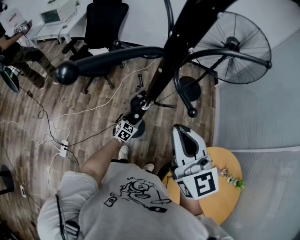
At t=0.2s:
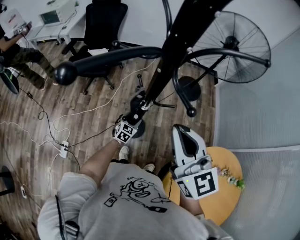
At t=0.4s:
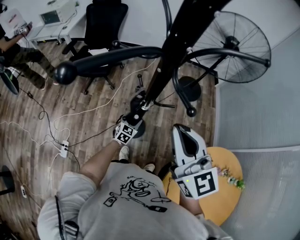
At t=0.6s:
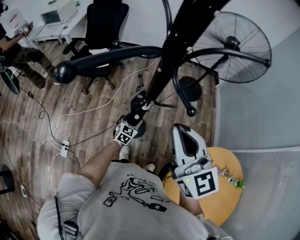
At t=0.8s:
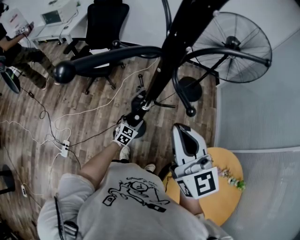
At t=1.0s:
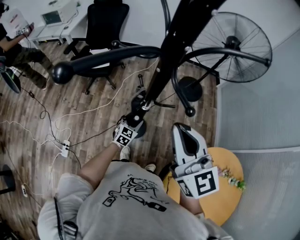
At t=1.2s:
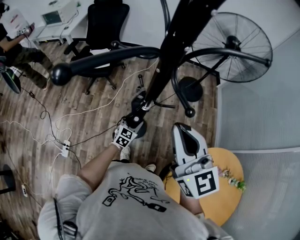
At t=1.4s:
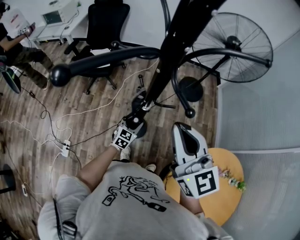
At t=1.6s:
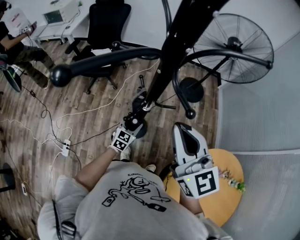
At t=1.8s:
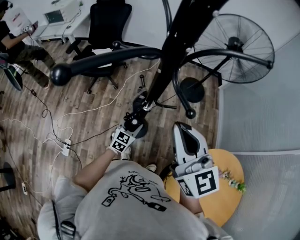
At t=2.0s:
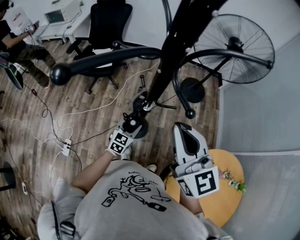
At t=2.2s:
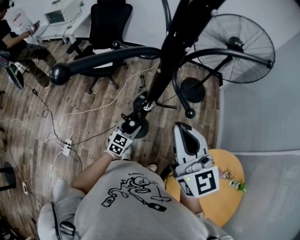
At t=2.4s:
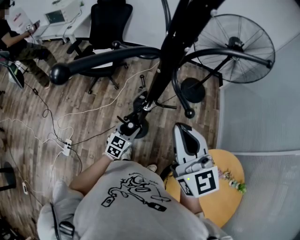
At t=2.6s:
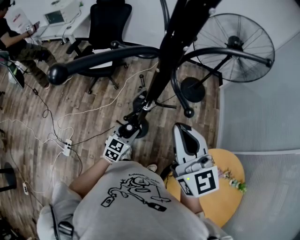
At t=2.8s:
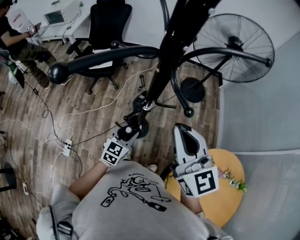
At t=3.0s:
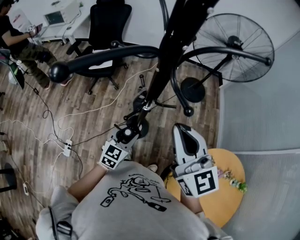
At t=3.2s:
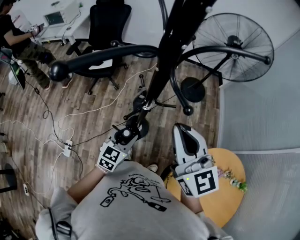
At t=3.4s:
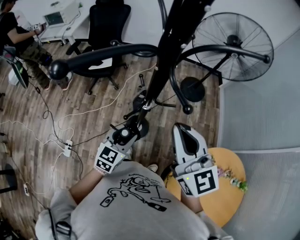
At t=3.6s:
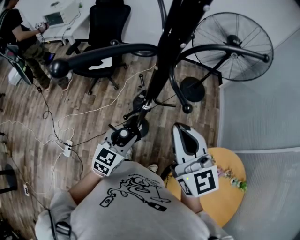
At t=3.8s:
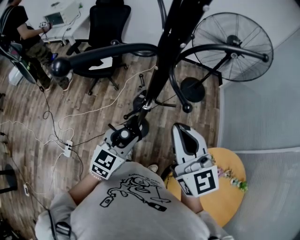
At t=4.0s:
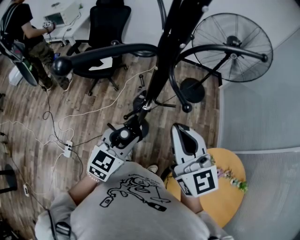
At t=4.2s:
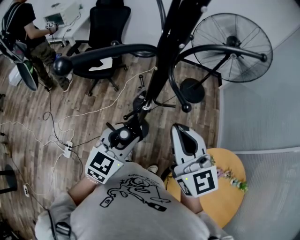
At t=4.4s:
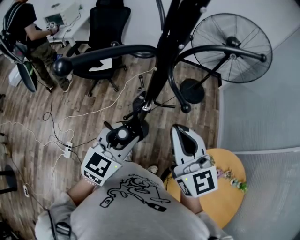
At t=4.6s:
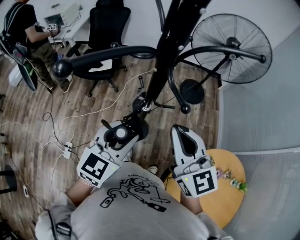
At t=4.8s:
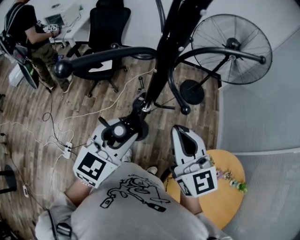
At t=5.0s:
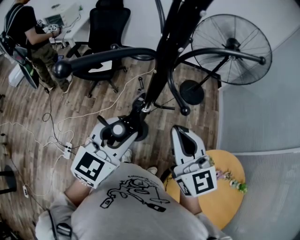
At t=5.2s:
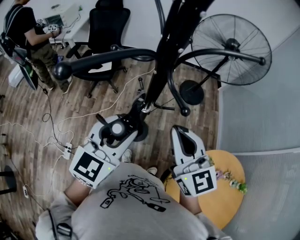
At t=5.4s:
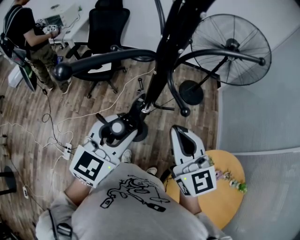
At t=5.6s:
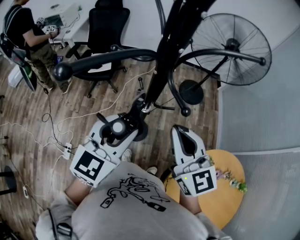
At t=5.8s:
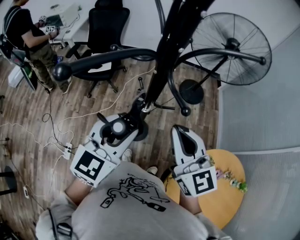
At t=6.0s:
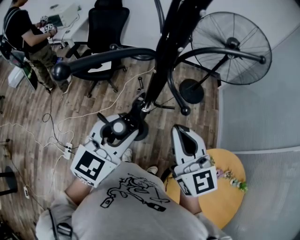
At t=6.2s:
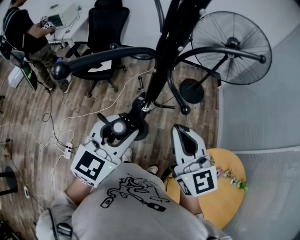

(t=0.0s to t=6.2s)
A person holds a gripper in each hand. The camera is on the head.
t=0.0s - t=1.6s: The left gripper heads upward, covering approximately 10 cm.
t=1.6s - t=3.2s: The left gripper moves upward and backward, some 15 cm.
t=3.2s - t=4.6s: The left gripper moves upward, approximately 20 cm.
t=4.6s - t=6.2s: The grippers make only small movements.

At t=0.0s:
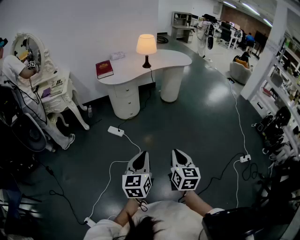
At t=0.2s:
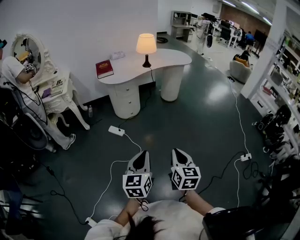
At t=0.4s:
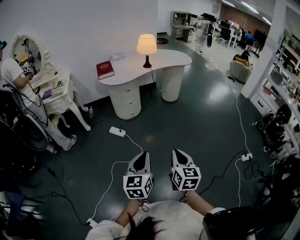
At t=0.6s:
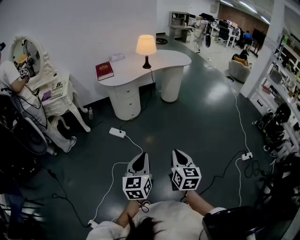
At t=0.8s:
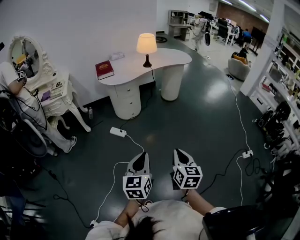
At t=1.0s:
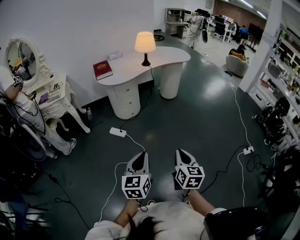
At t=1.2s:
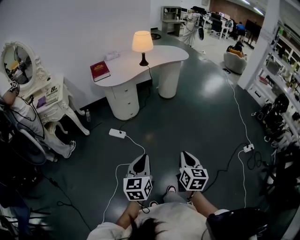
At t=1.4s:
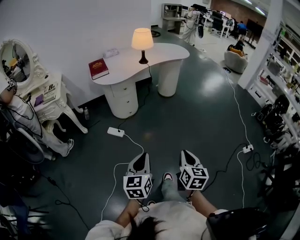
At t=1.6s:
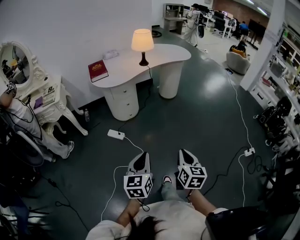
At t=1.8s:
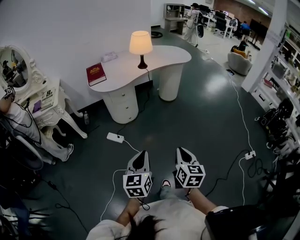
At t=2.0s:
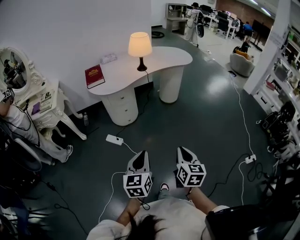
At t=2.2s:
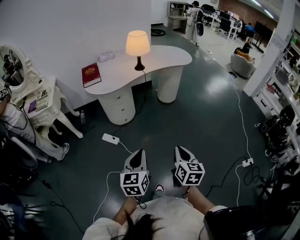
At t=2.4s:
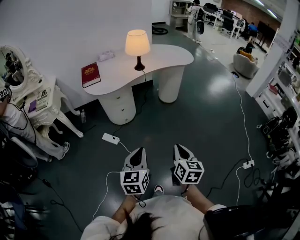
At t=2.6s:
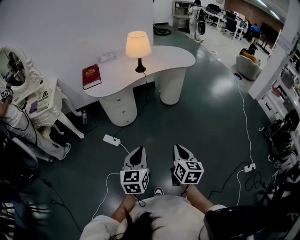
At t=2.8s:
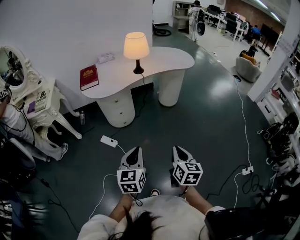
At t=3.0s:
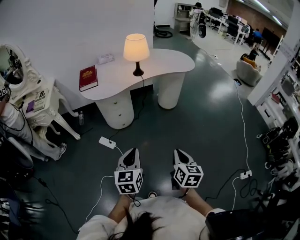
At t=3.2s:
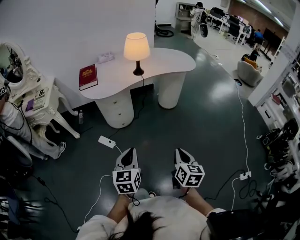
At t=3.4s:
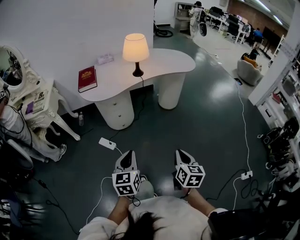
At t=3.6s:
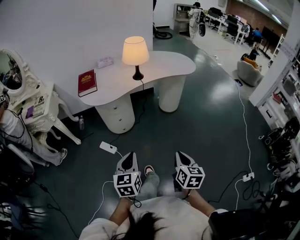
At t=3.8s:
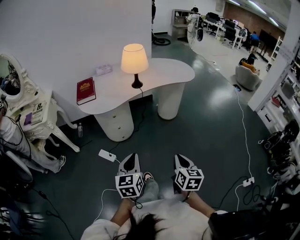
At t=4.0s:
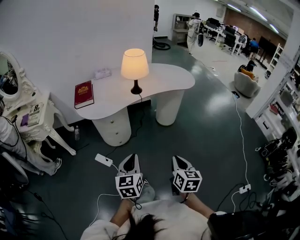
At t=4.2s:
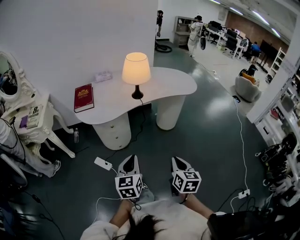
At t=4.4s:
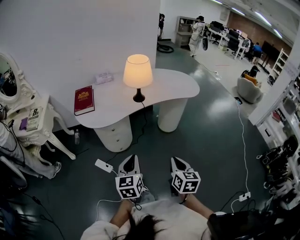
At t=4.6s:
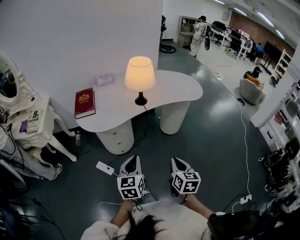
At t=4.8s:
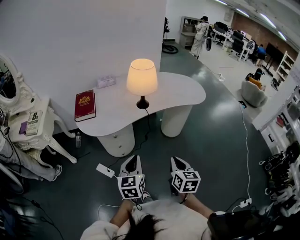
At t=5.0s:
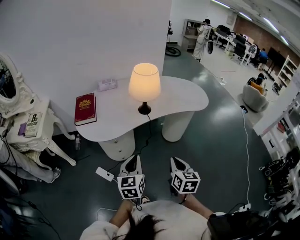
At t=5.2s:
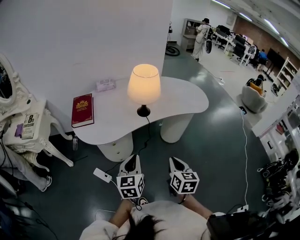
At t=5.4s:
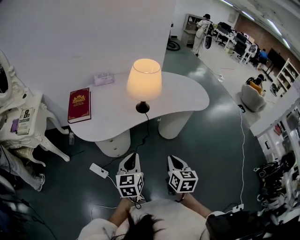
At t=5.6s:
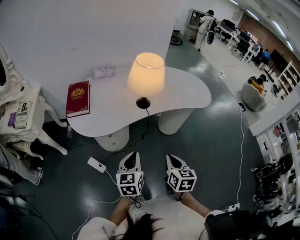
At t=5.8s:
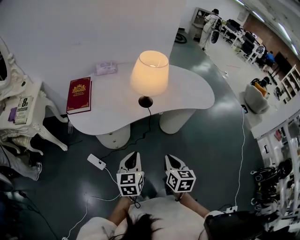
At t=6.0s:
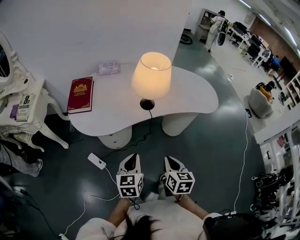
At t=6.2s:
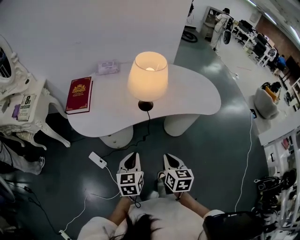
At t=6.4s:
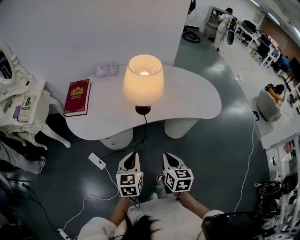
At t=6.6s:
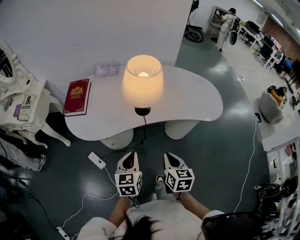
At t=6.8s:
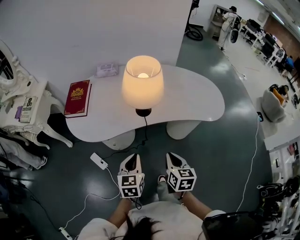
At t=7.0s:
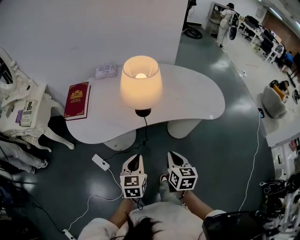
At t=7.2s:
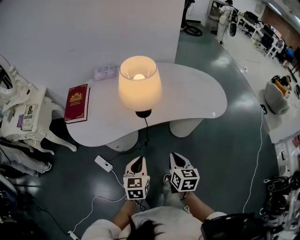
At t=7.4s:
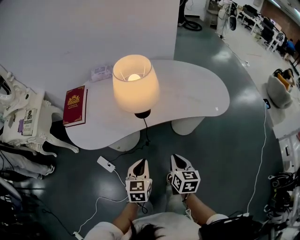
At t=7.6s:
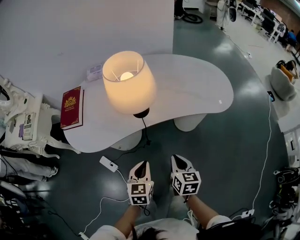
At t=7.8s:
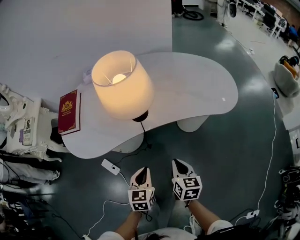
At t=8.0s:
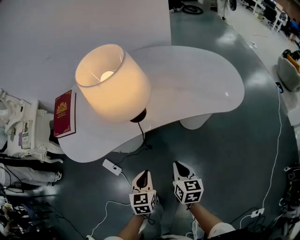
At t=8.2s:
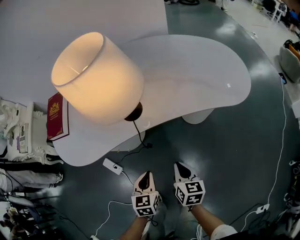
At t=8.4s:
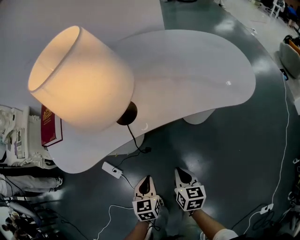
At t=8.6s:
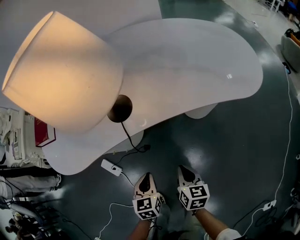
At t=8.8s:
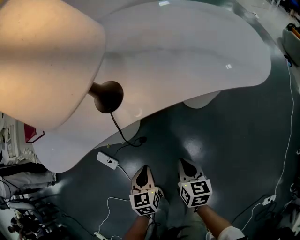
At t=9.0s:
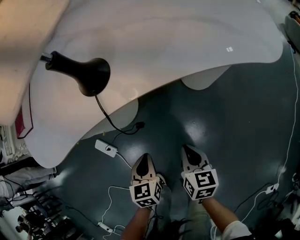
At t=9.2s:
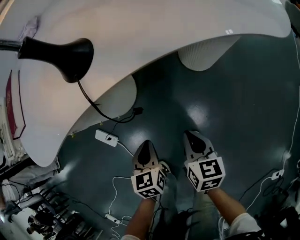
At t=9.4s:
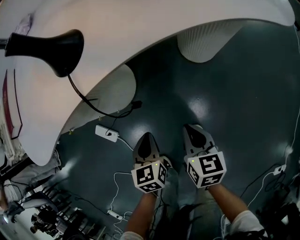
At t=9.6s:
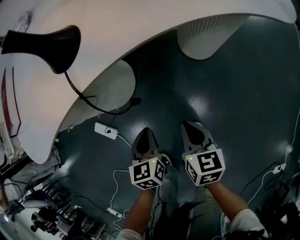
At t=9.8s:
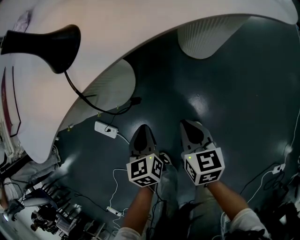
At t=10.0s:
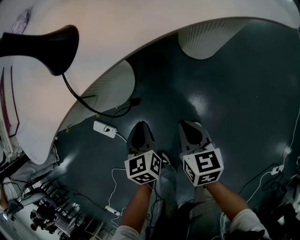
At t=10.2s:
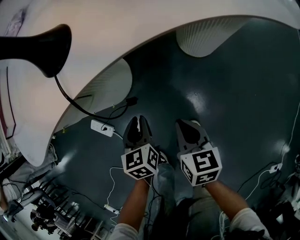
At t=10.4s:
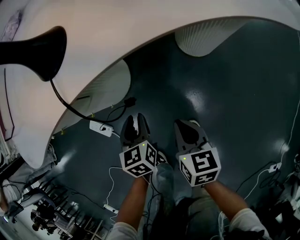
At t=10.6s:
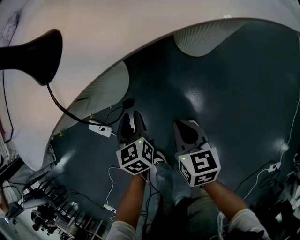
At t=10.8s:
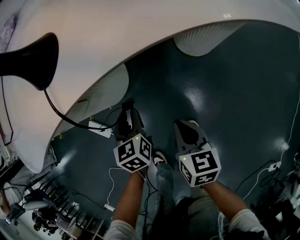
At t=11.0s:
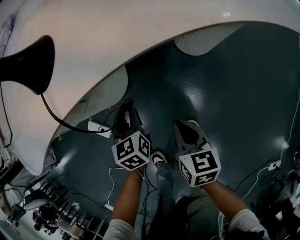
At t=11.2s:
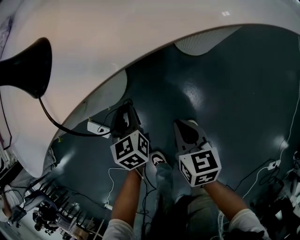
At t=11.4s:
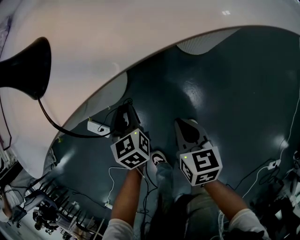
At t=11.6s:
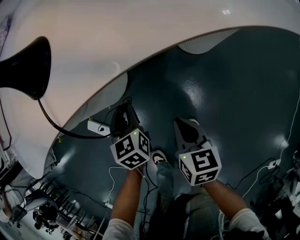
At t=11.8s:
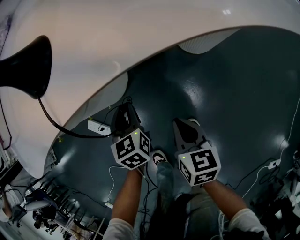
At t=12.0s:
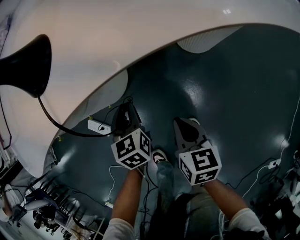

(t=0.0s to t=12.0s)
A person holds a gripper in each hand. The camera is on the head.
t=0.0s - t=1.6s: The grippers both shift forward by some 10 cm.
t=1.6s - t=3.0s: The right gripper travels forward and to the right by some 25 cm, while the left gripper travels forward by roughly 20 cm.
t=3.0s - t=4.4s: The grippers both shift forward by some 20 cm.
t=4.4s - t=6.0s: The two grippers go approximately 20 cm forward.
t=6.0s - t=7.6s: The right gripper goes about 15 cm forward, to the right and downward, while the left gripper moves to the right, forward and downward, roughly 15 cm.
t=7.6s - t=9.0s: Both grippers move downward, roughly 30 cm.
t=9.0s - t=10.4s: The left gripper is displaced forward and downward by some 10 cm, and opens up.
t=10.4s - t=12.0s: The left gripper heads forward, covering approximately 5 cm.

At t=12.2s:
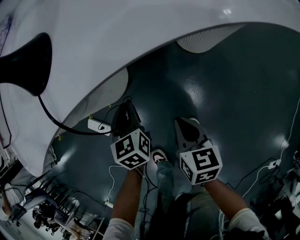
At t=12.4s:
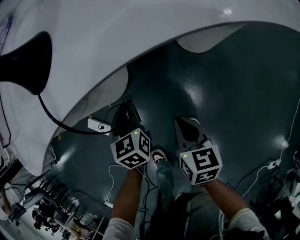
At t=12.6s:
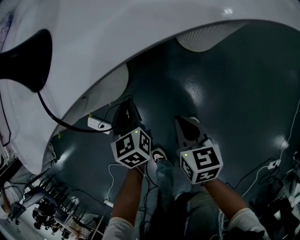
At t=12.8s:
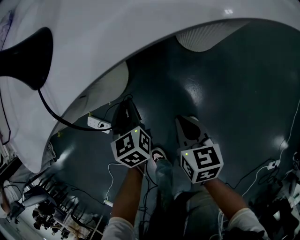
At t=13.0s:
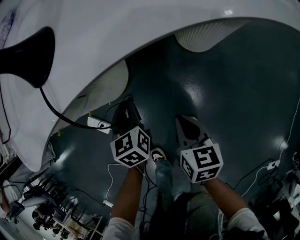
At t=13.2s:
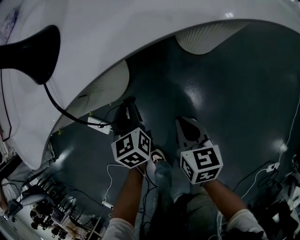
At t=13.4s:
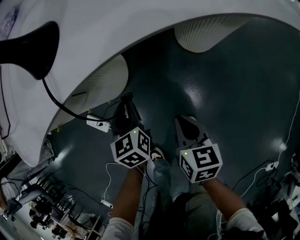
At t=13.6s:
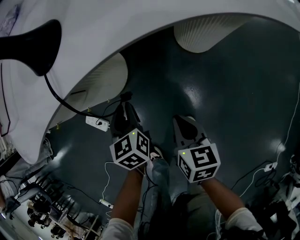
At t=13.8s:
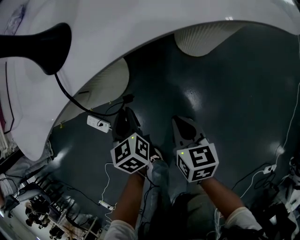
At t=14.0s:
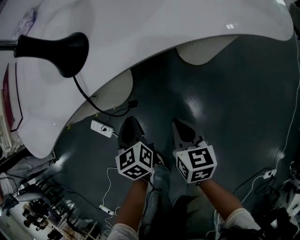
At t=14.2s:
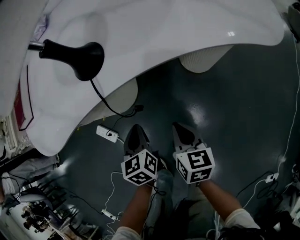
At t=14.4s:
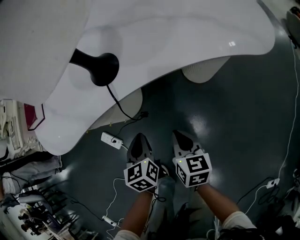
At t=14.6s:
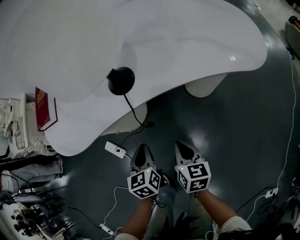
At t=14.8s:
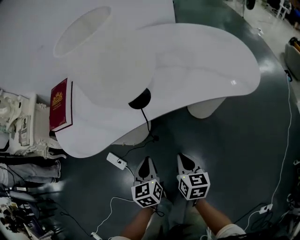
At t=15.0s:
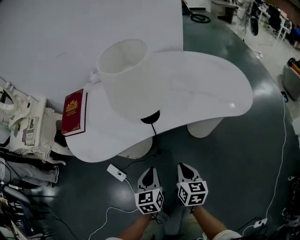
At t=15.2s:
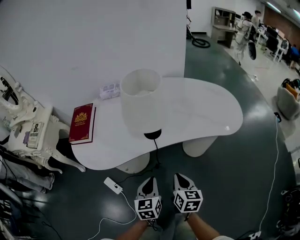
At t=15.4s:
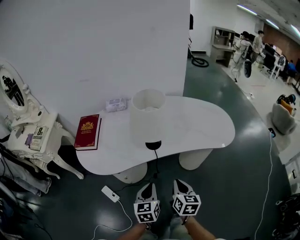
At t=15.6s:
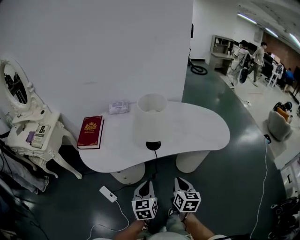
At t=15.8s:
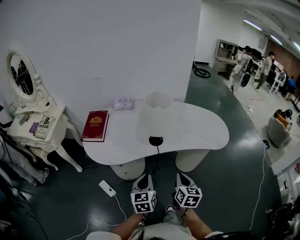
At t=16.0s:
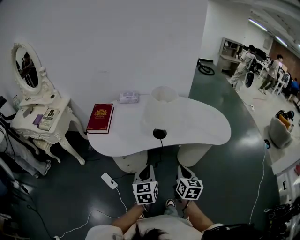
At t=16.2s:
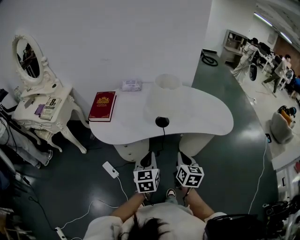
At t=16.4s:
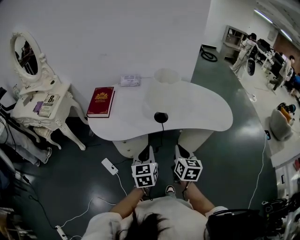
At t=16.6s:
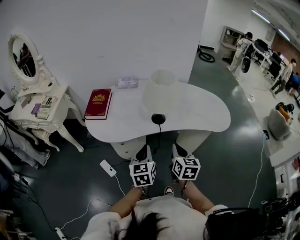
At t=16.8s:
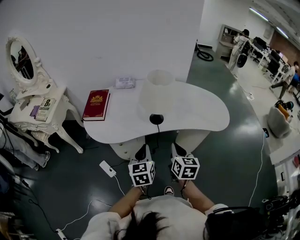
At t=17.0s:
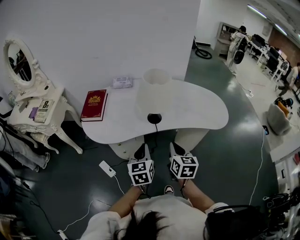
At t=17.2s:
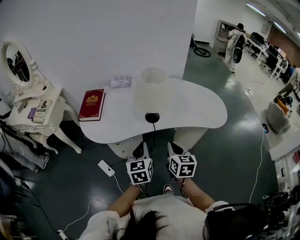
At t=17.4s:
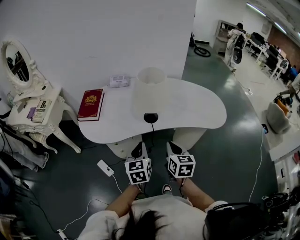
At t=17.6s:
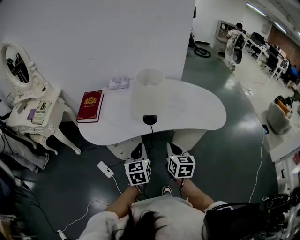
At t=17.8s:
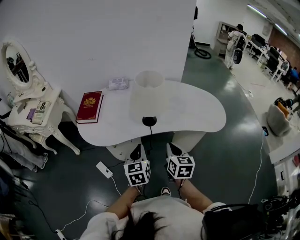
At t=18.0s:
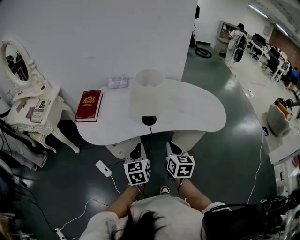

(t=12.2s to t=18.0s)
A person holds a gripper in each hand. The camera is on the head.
t=12.2s - t=13.6s: The grippers make only small movements.
t=13.6s - t=15.0s: Both grippers travel together upward, approximately 25 cm.
t=15.0s - t=16.6s: Both grippers travel together upward, some 20 cm.
t=16.6s - t=18.0s: The grippers move only a little.
